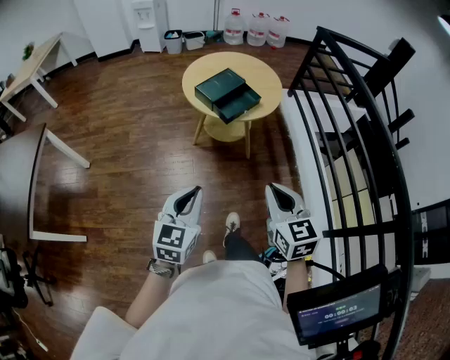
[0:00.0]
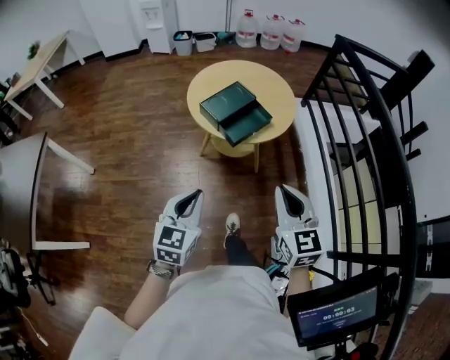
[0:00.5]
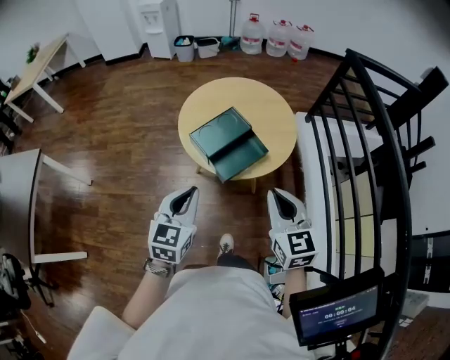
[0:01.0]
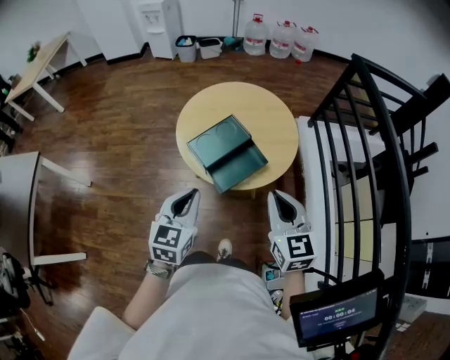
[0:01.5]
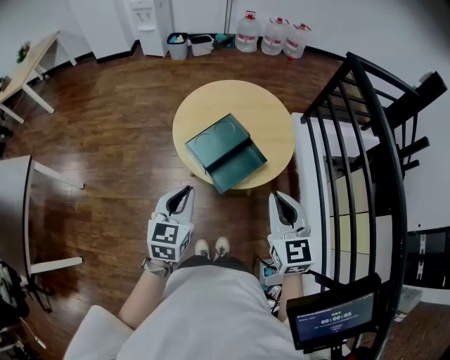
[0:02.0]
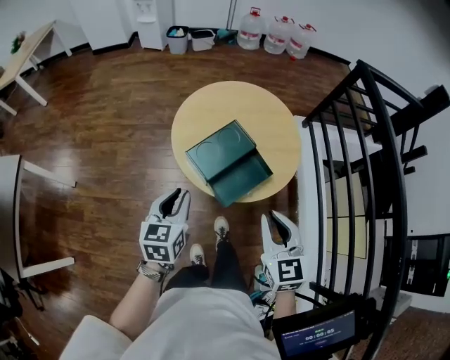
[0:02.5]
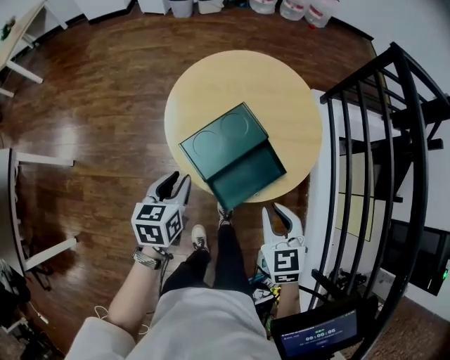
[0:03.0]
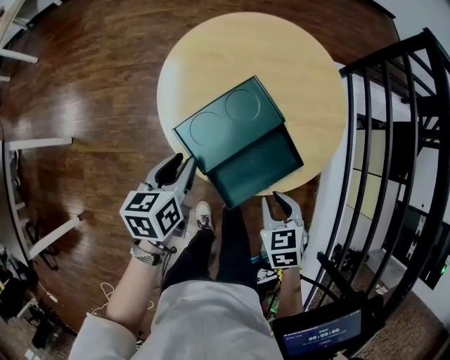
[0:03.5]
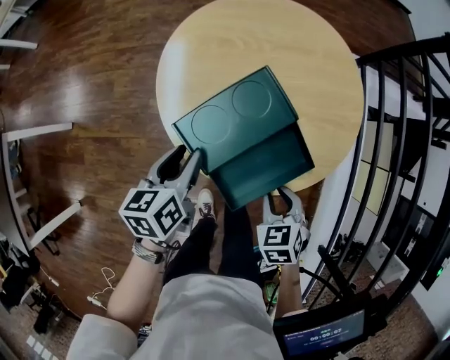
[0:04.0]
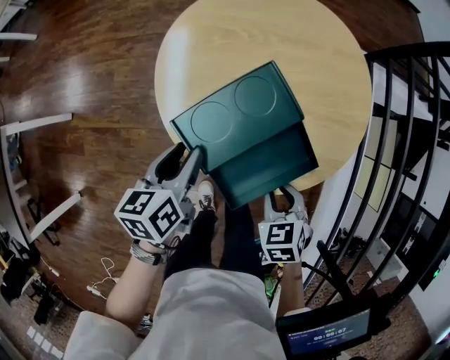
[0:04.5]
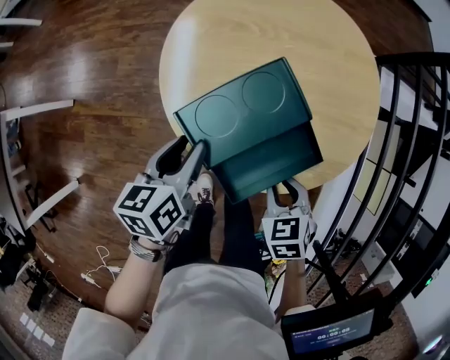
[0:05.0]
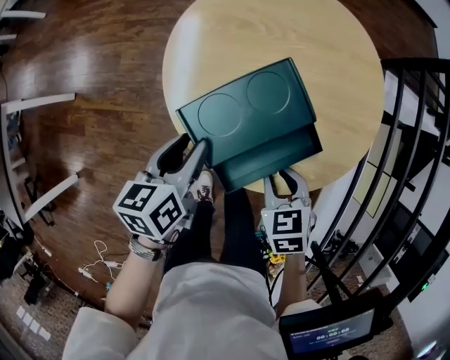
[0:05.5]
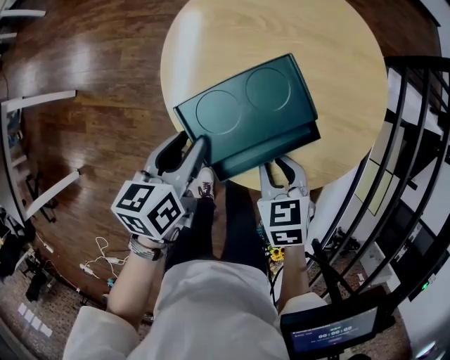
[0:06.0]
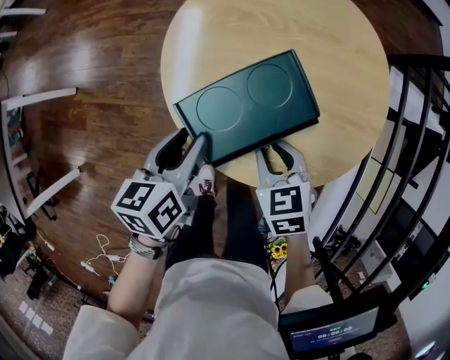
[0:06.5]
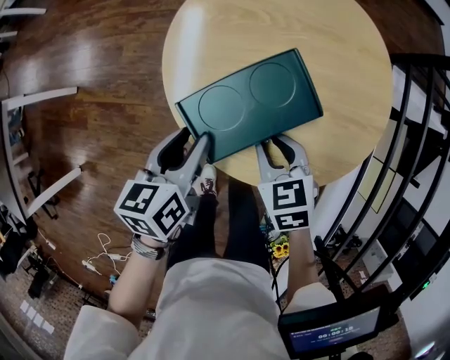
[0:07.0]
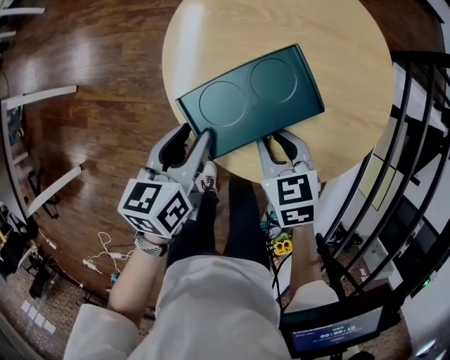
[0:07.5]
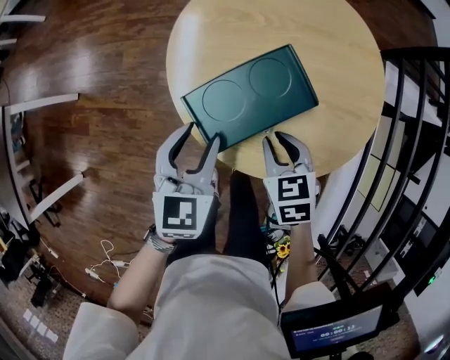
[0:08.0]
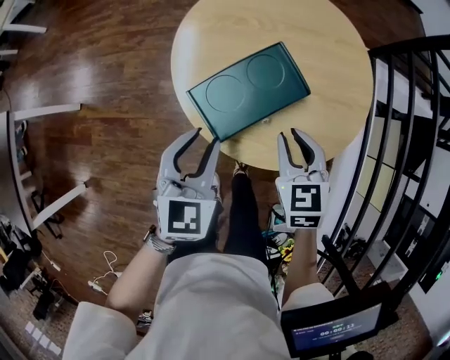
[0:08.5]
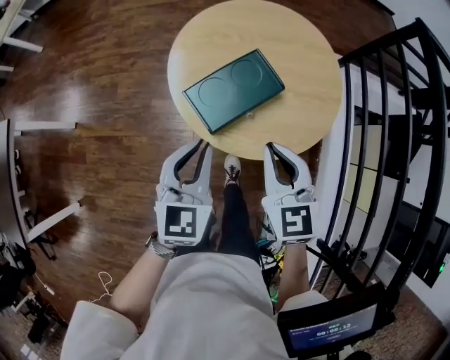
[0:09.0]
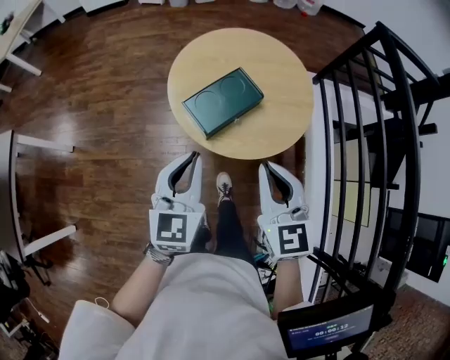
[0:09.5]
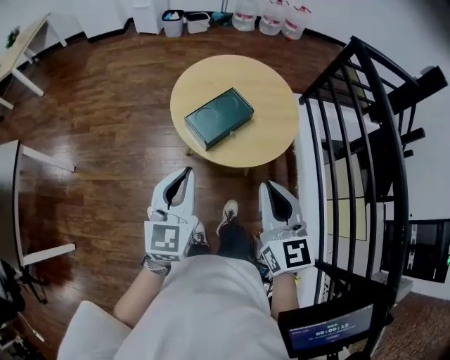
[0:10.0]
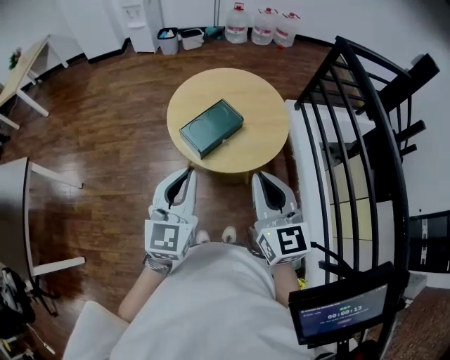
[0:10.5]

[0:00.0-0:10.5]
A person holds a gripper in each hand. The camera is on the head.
0:00.0 to 0:02.0: The two grippers go about 30 cm forward.
0:02.0 to 0:04.0: The left gripper goes about 20 cm downward and forward, rotates approximately 40 degrees, and opens; the right gripper shifts about 25 cm downward, tilts its fingers some 50 degrees downward, and opens its fingers.
0:04.0 to 0:06.5: The right gripper goes approximately 10 cm forward and to the left.
0:06.5 to 0:08.5: The grippers both shift upward by some 5 cm. The left gripper rotates around the line of its fingers by about 50 degrees, clockwise from behind.
0:08.5 to 0:10.5: Both grippers move upward and backward, roughly 25 cm. The left gripper rotates roughly 30 degrees, and closes up; the right gripper angles its fingers upward, by approximately 40 degrees, and closes up.

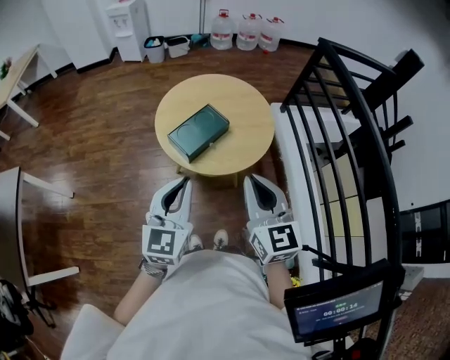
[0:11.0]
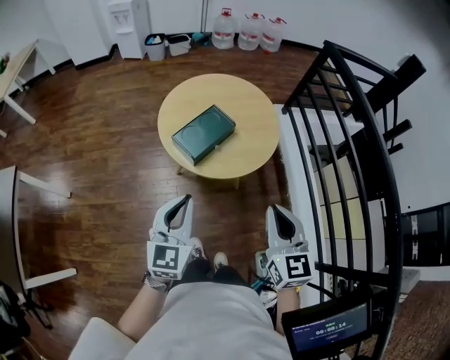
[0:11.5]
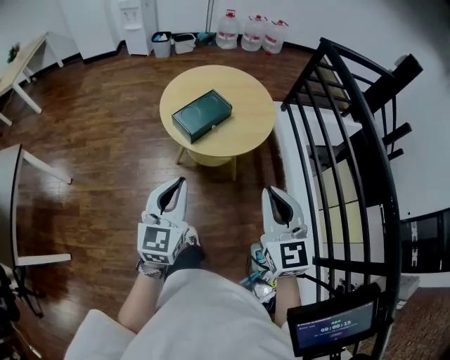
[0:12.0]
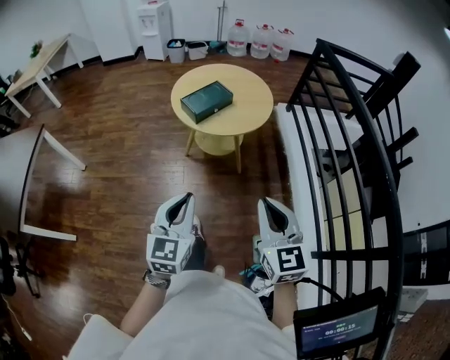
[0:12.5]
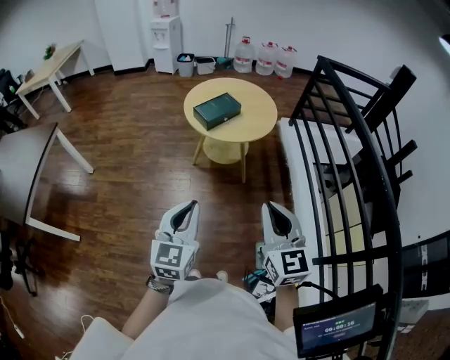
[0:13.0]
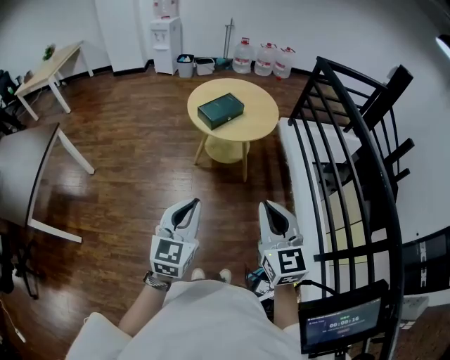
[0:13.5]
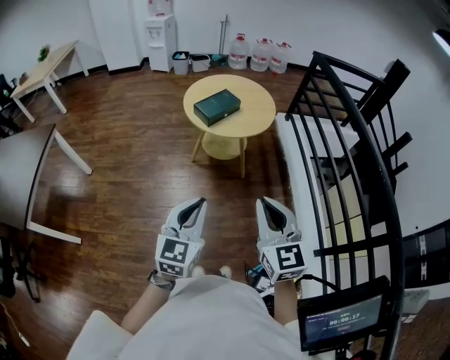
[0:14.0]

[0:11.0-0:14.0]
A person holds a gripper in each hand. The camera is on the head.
0:11.0 to 0:12.5: Both grippers move backward, roughly 25 cm.
0:12.5 to 0:14.0: The left gripper goes roughly 5 cm backward, while the right gripper goes roughly 10 cm backward and to the left.

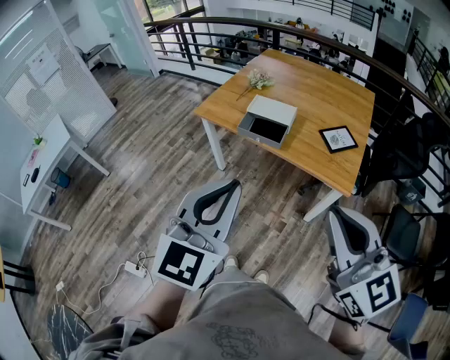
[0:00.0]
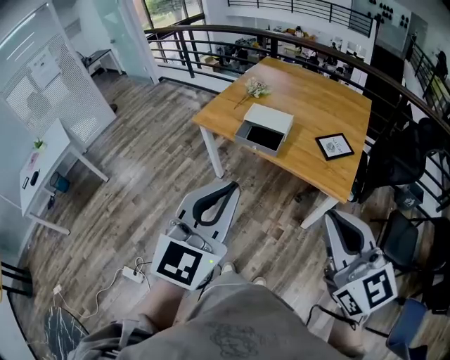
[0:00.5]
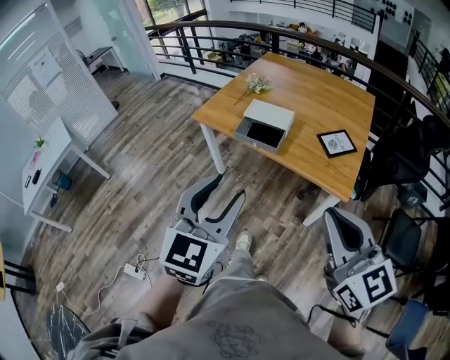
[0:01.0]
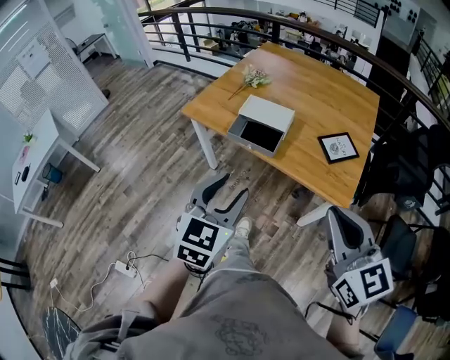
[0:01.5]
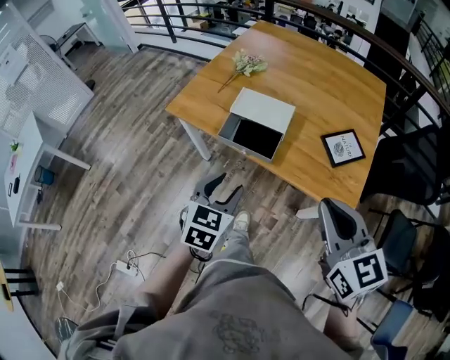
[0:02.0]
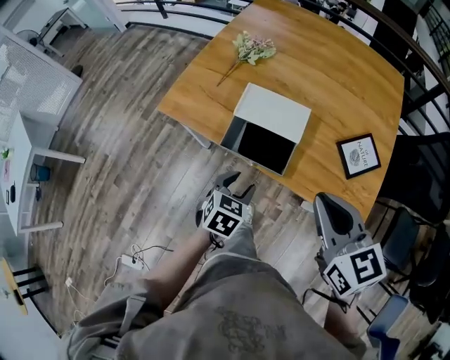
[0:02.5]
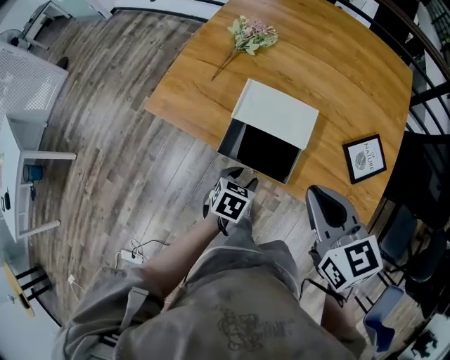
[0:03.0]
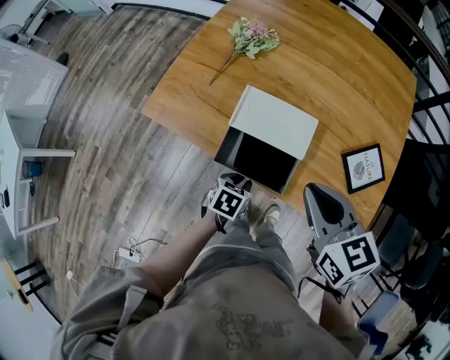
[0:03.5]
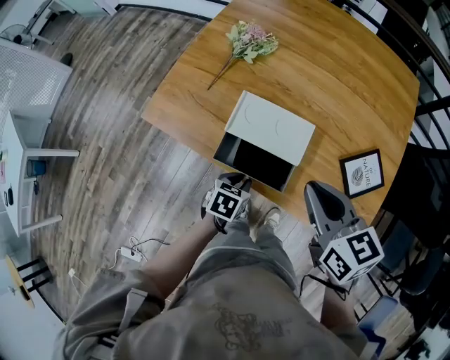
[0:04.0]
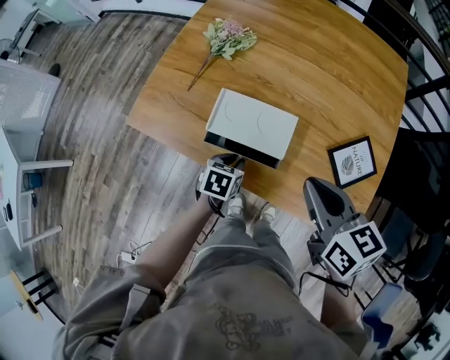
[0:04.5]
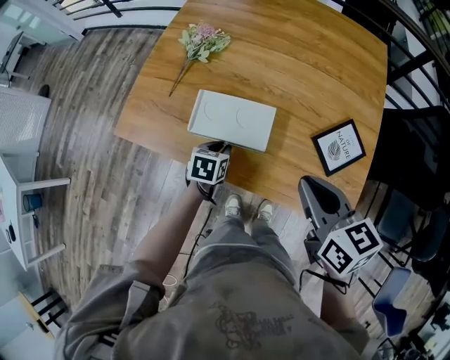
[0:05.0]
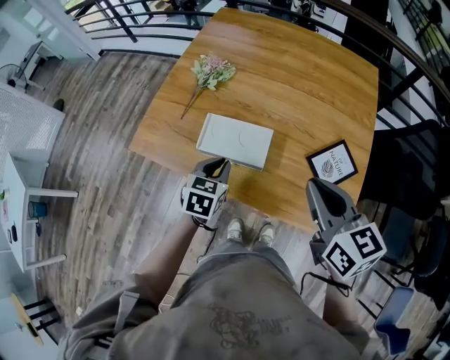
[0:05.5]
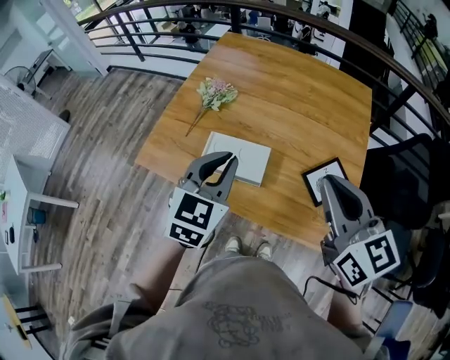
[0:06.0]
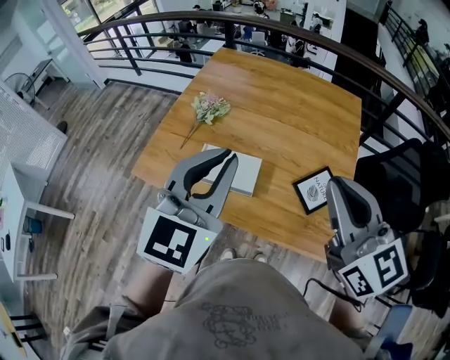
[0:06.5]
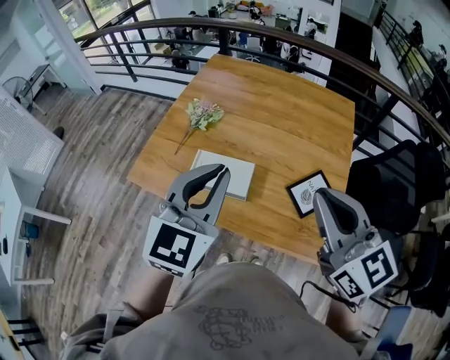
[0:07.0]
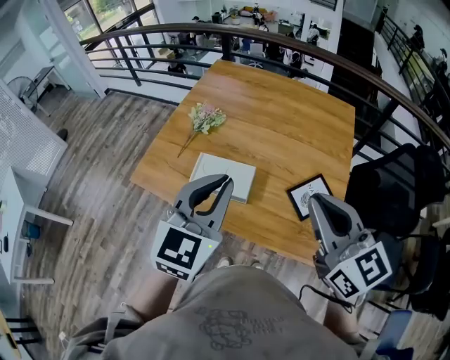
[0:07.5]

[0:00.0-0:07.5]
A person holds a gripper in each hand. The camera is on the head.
0:00.0 to 0:02.0: The two grippers go roughly 30 cm forward and downward. The left gripper tilts its fingers about 30 degrees downward, and opens up.
0:02.0 to 0:04.0: The right gripper is displaced forward and downward by approximately 25 cm, and changes its angle by some 20 degrees. The left gripper moves downward and forward, approximately 30 cm, changes its angle by approximately 40 degrees, and closes up.
0:04.0 to 0:05.5: The left gripper goes about 15 cm upward and forward, and changes its angle by approximately 20 degrees, while the right gripper travels to the right and upward by approximately 10 cm.
0:05.5 to 0:07.5: The right gripper shifts approximately 10 cm upward, and turns by about 20 degrees. The left gripper shifts approximately 30 cm upward, and points its fingers roughly 30 degrees further upward.

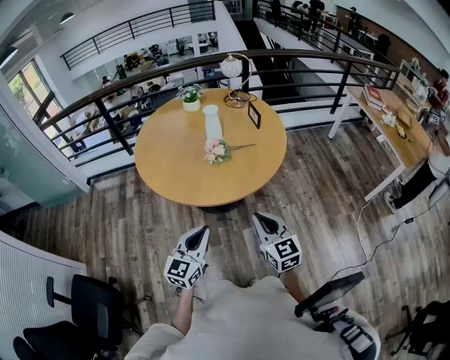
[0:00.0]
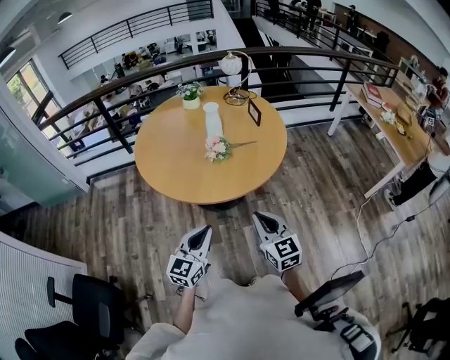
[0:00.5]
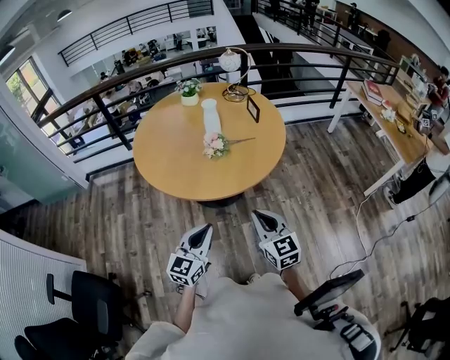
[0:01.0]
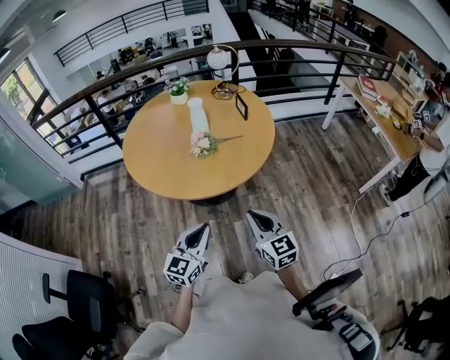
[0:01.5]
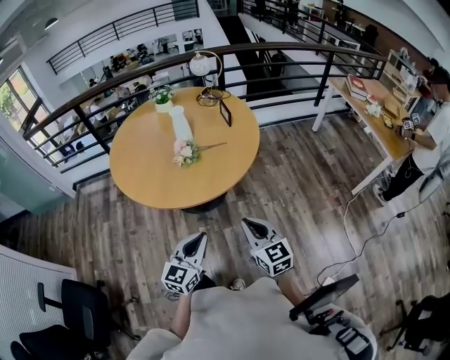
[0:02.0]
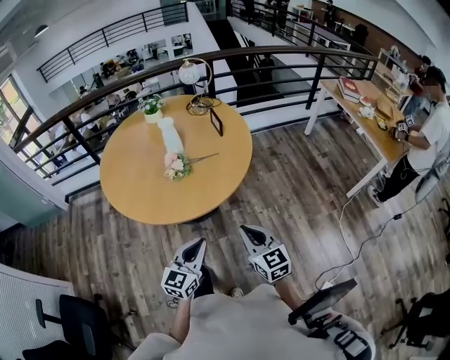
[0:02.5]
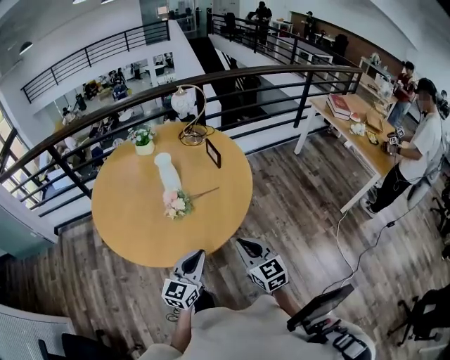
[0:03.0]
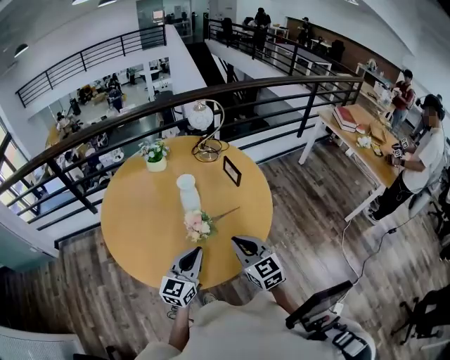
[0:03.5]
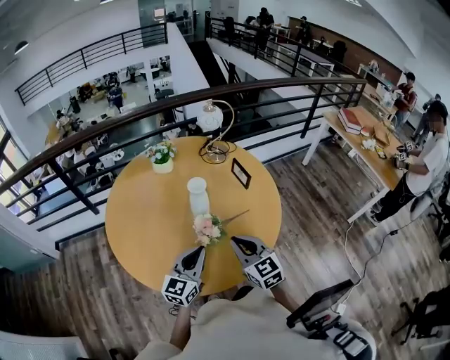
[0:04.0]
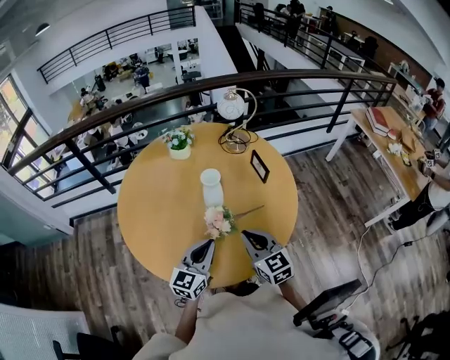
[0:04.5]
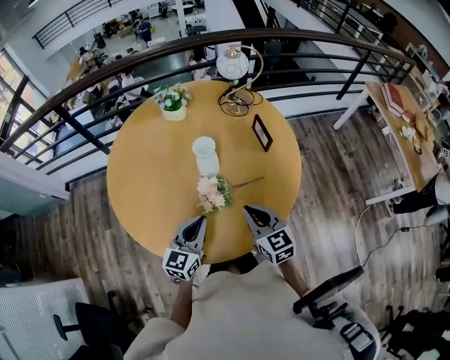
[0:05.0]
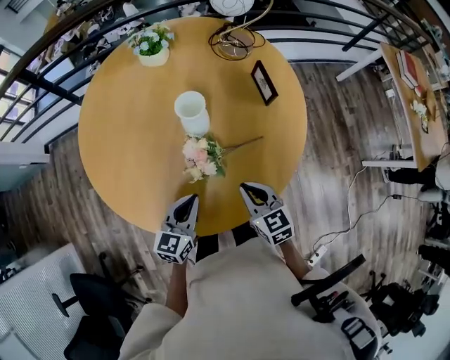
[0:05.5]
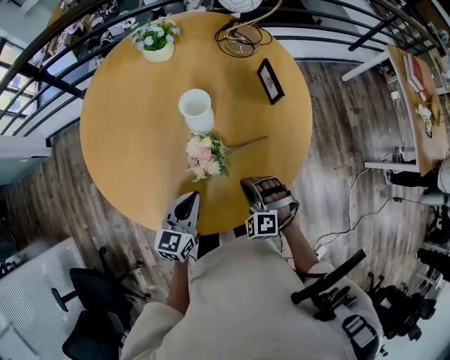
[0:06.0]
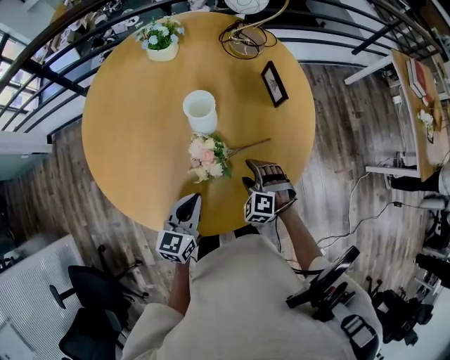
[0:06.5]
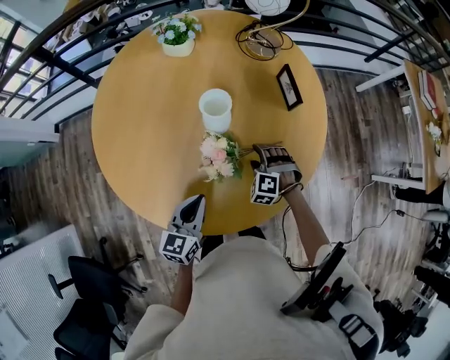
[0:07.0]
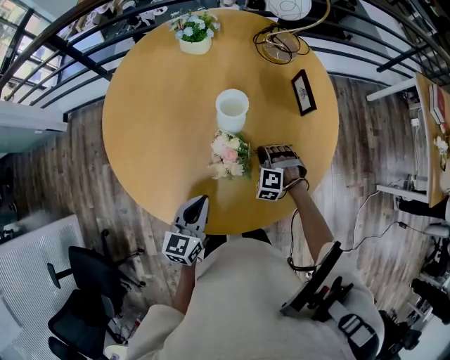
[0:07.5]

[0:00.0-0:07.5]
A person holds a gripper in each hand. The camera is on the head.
0:00.0 to 0:02.0: Both grippers move to the right, approximately 10 cm.
0:02.0 to 0:04.0: The two grippers go about 30 cm forward and to the left.
0:04.0 to 0:05.5: Both grippers travel together downward, some 10 cm. The left gripper rotates roughly 20 degrees; the right gripper changes its angle by some 20 degrees.
0:05.5 to 0:07.5: The right gripper goes roughly 20 cm downward and forward, twists about 70 degrees counterclockwise, seen from behind, and opens and closes again.
